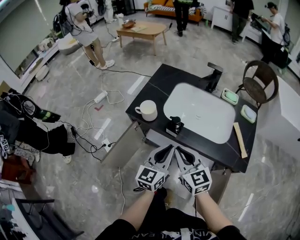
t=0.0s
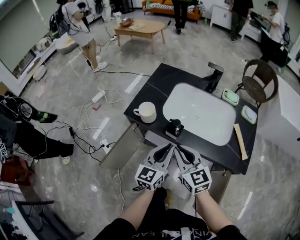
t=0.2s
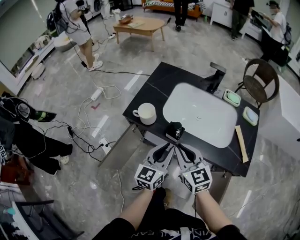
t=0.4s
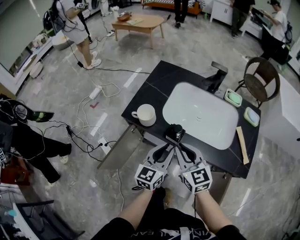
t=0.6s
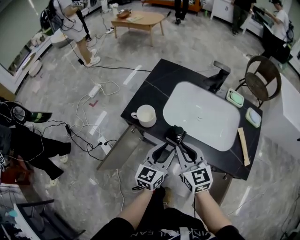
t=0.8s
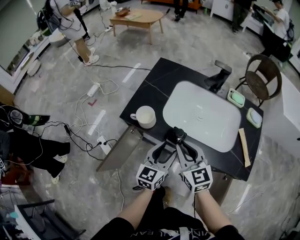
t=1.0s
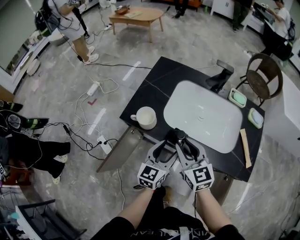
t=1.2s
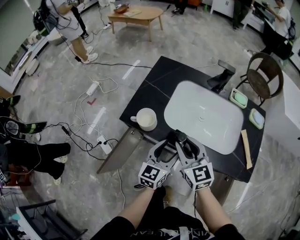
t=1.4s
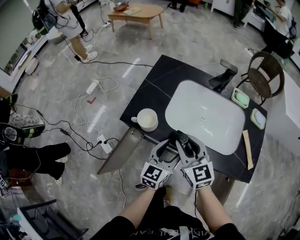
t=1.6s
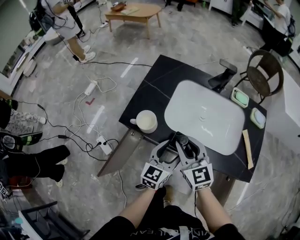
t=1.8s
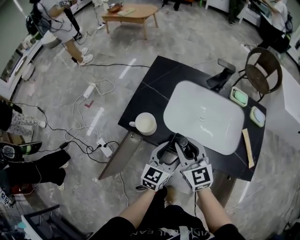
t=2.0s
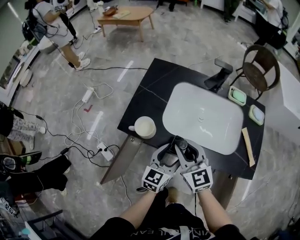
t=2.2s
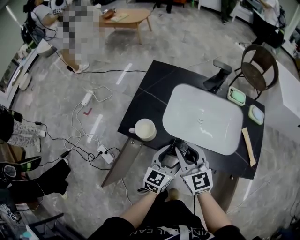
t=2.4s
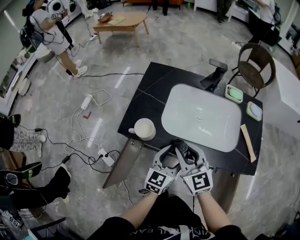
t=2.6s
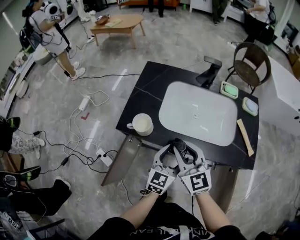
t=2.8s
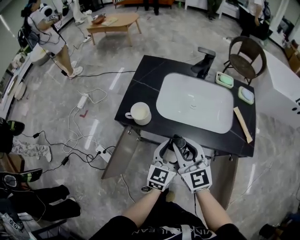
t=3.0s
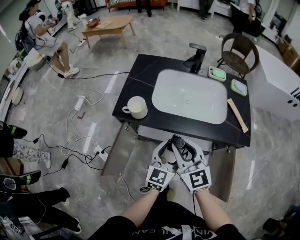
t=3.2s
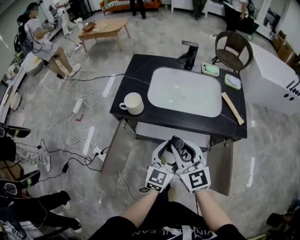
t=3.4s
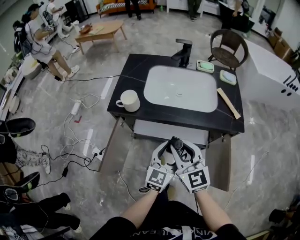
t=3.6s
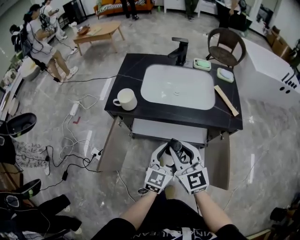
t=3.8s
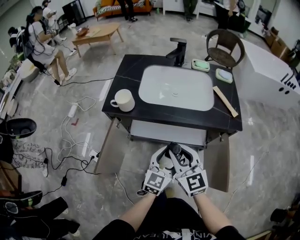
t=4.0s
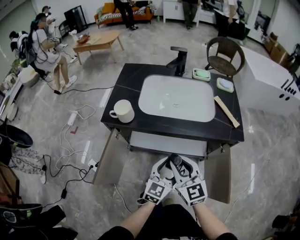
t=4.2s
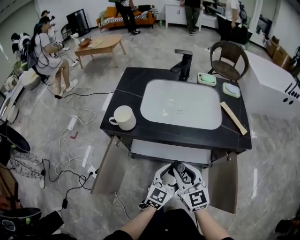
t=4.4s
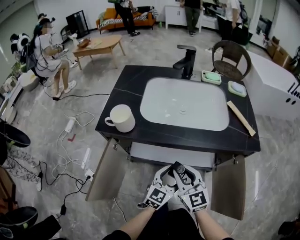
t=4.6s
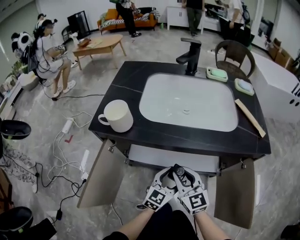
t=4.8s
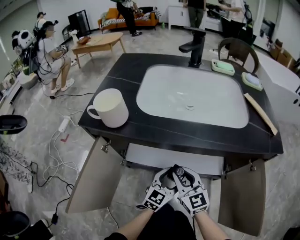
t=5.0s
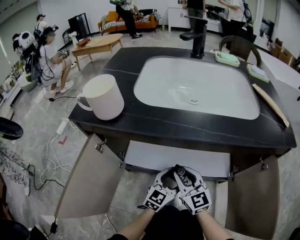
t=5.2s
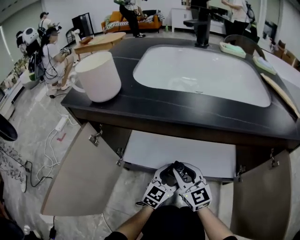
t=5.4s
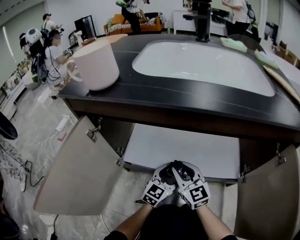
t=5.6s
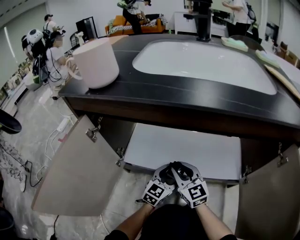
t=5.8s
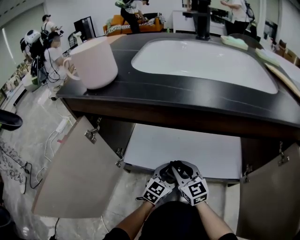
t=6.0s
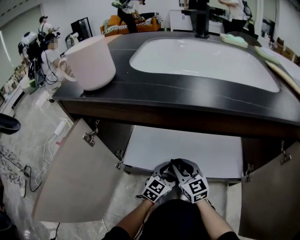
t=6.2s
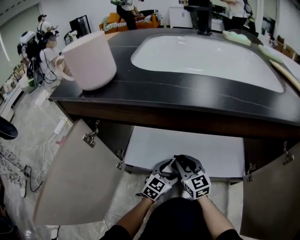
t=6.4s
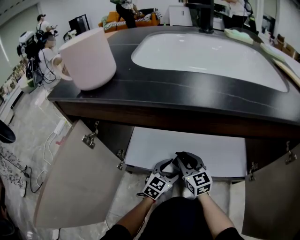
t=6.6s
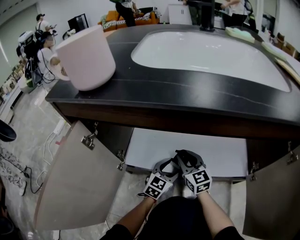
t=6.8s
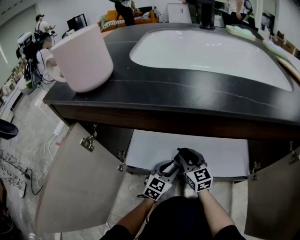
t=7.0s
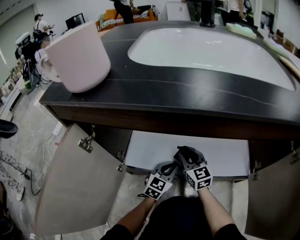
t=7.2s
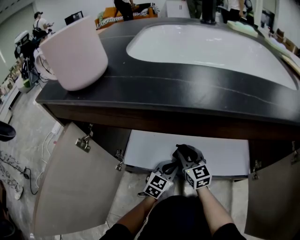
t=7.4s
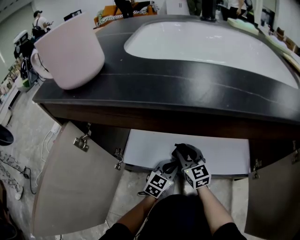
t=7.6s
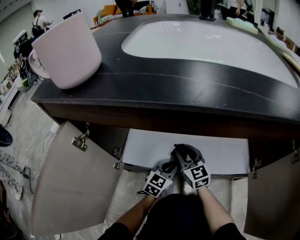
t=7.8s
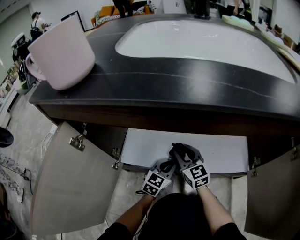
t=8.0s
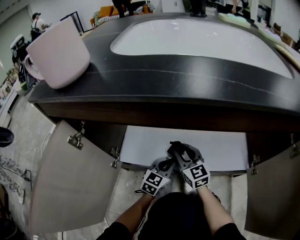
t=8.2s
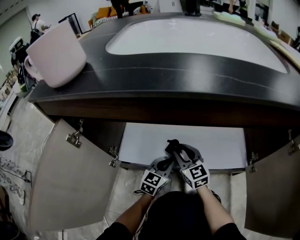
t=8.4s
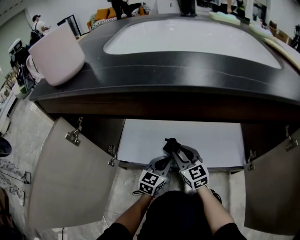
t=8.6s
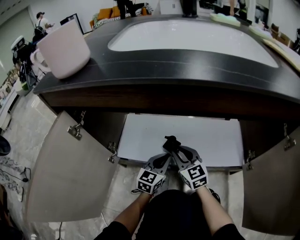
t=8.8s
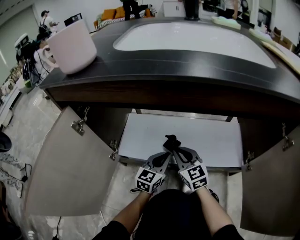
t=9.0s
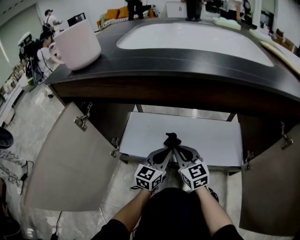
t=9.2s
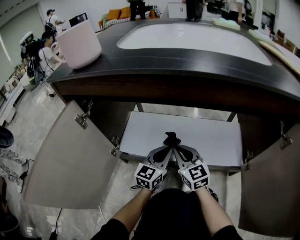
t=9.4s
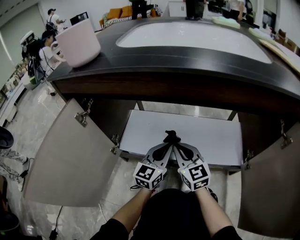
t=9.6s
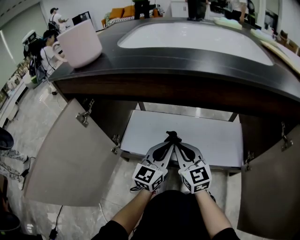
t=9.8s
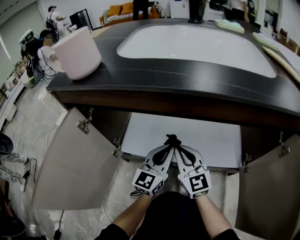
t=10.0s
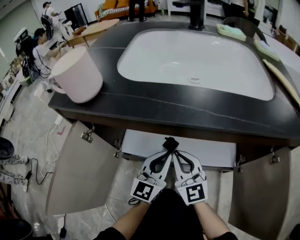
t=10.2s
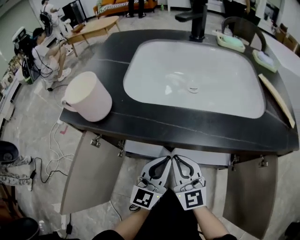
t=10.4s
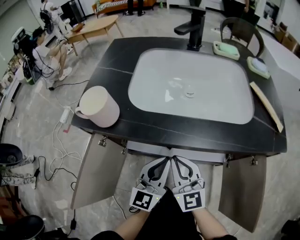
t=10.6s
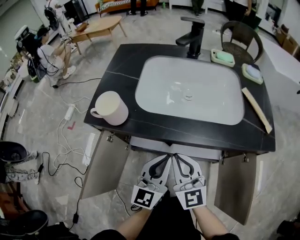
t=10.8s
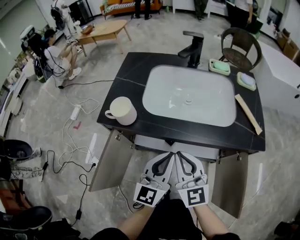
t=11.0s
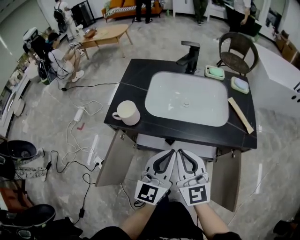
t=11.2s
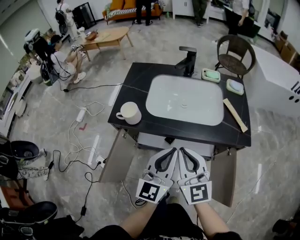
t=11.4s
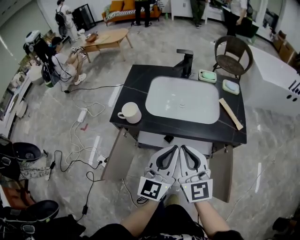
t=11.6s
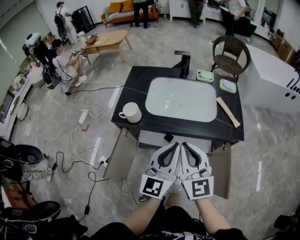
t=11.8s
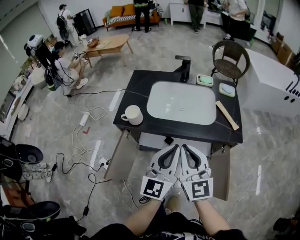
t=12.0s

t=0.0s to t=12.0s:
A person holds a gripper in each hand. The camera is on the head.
t=0.0s to t=1.6s: The left gripper shifts roughly 10 cm forward and downward, and opens up. The right gripper is displaced forward by roughly 15 cm.
t=1.6s to t=3.0s: Both grippers move backward, approximately 5 cm.
t=3.0s to t=4.4s: The two grippers go approximately 15 cm downward, backward and to the right.
t=4.4s to t=6.0s: Both grippers move downward, approximately 40 cm.
t=6.0s to t=7.6s: The left gripper moves approximately 5 cm, and closes its fingers. The right gripper shifts some 10 cm forward.
t=7.6s to t=9.0s: The right gripper moves backward, approximately 5 cm.
t=9.0s to t=10.4s: Both grippers move upward, about 25 cm.
t=10.4s to t=12.0s: Both grippers travel together upward, about 40 cm.

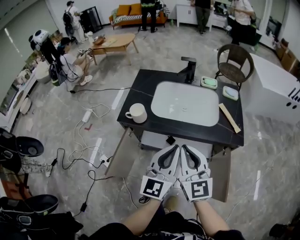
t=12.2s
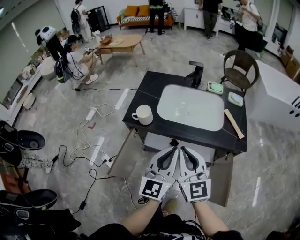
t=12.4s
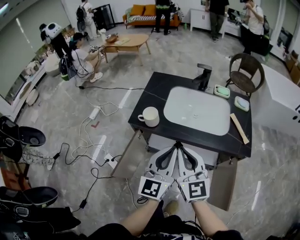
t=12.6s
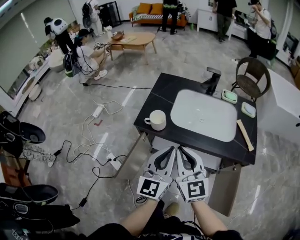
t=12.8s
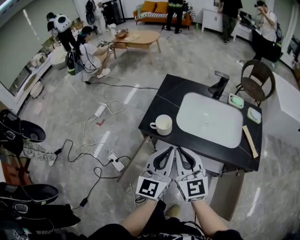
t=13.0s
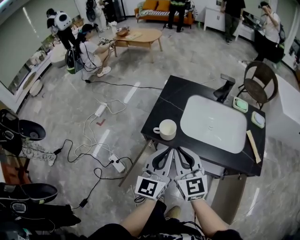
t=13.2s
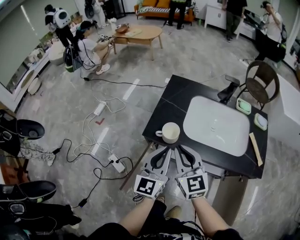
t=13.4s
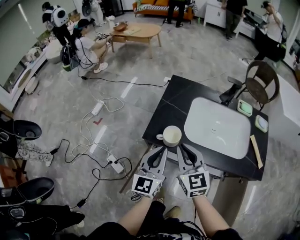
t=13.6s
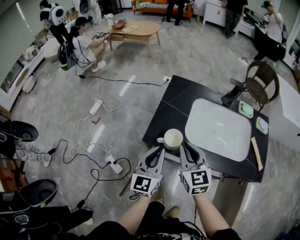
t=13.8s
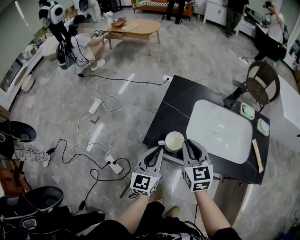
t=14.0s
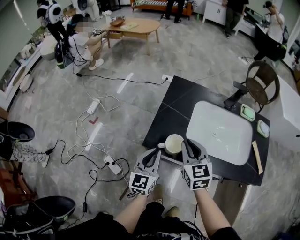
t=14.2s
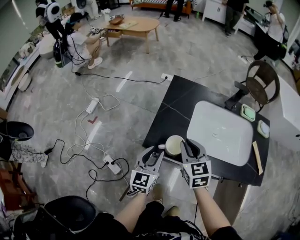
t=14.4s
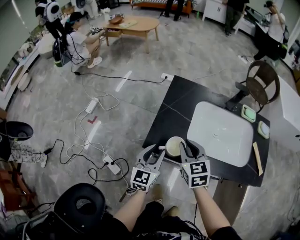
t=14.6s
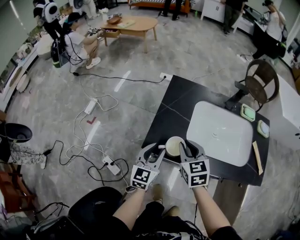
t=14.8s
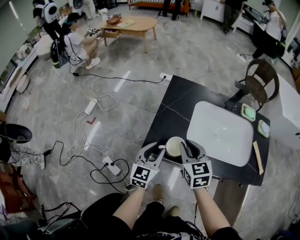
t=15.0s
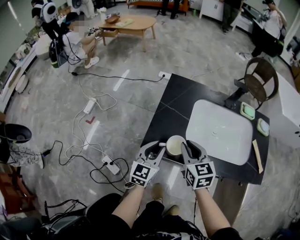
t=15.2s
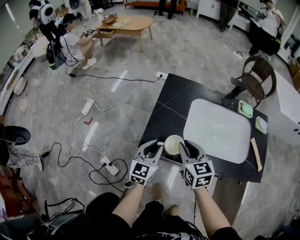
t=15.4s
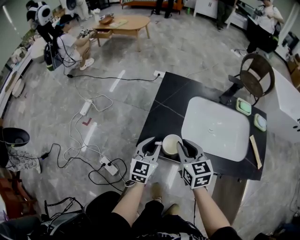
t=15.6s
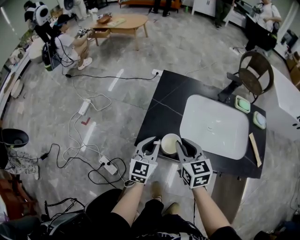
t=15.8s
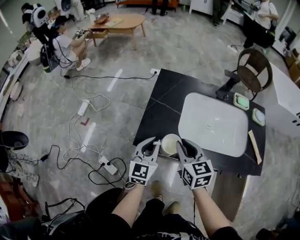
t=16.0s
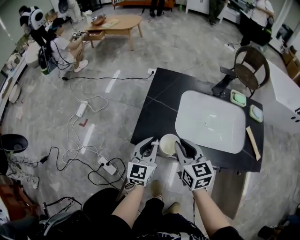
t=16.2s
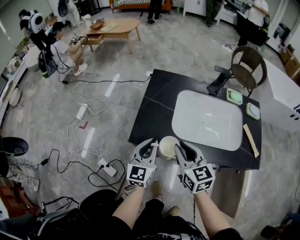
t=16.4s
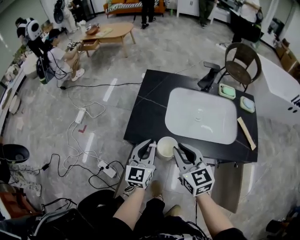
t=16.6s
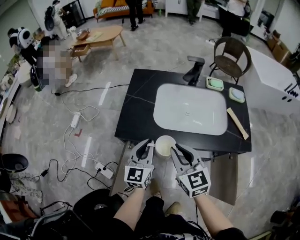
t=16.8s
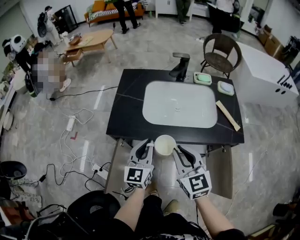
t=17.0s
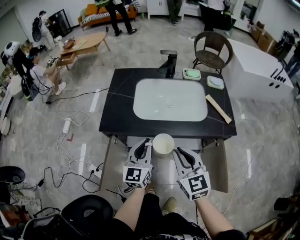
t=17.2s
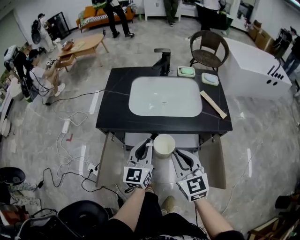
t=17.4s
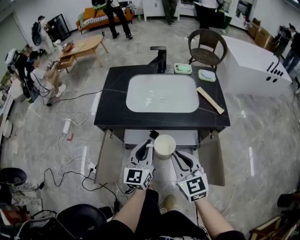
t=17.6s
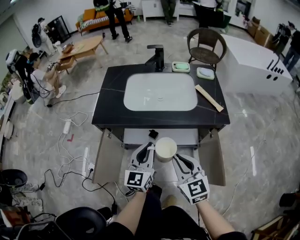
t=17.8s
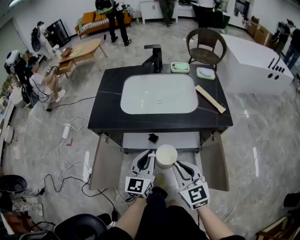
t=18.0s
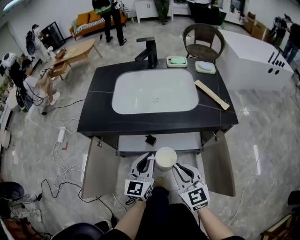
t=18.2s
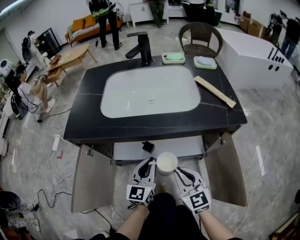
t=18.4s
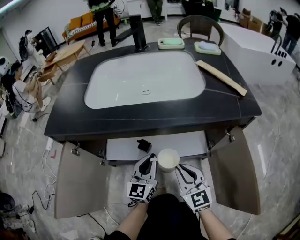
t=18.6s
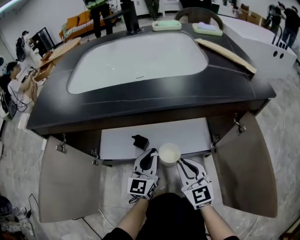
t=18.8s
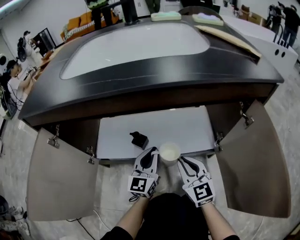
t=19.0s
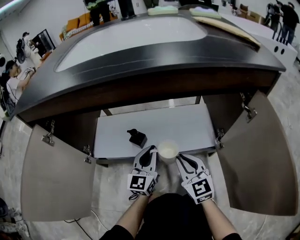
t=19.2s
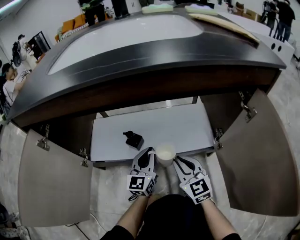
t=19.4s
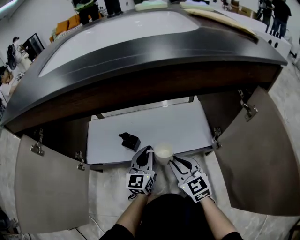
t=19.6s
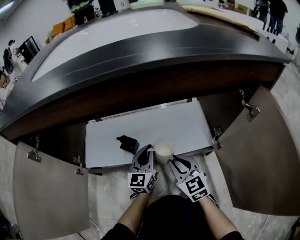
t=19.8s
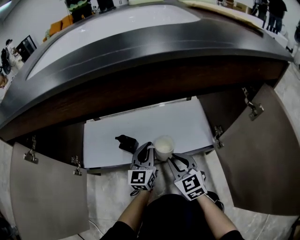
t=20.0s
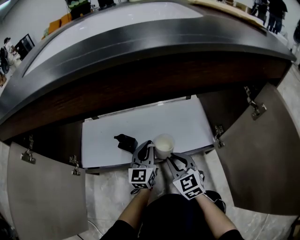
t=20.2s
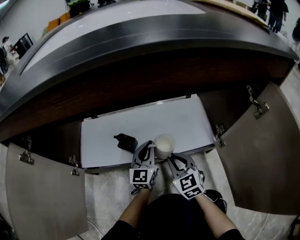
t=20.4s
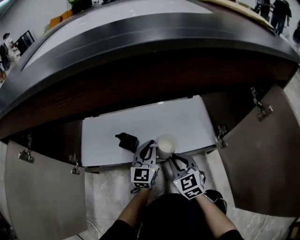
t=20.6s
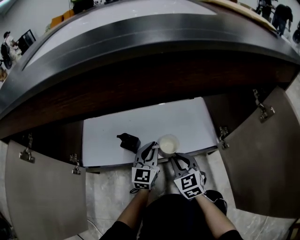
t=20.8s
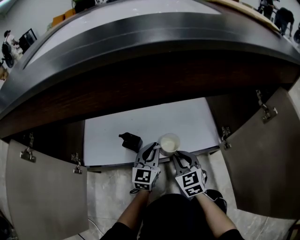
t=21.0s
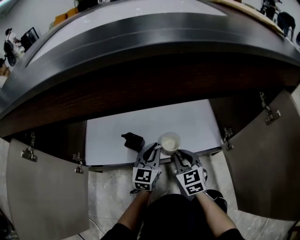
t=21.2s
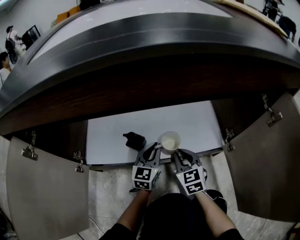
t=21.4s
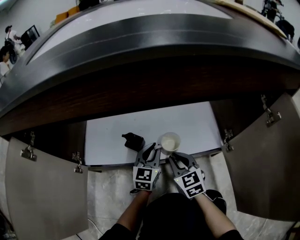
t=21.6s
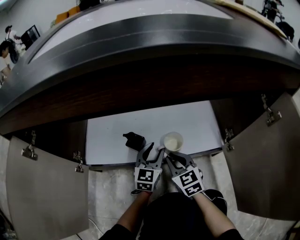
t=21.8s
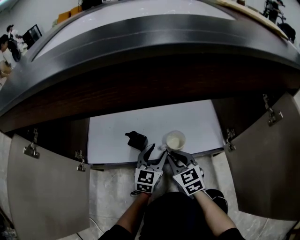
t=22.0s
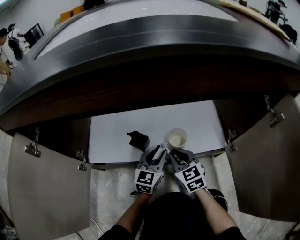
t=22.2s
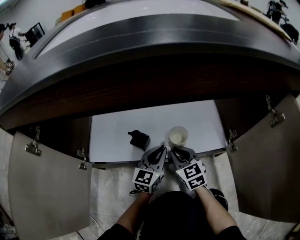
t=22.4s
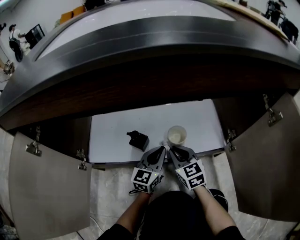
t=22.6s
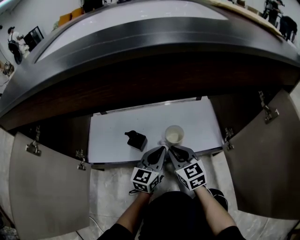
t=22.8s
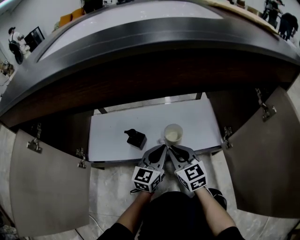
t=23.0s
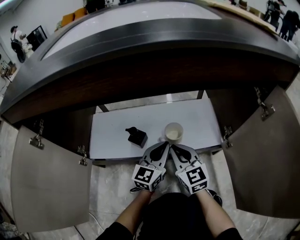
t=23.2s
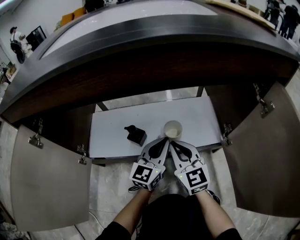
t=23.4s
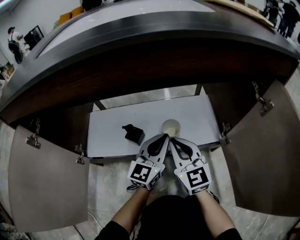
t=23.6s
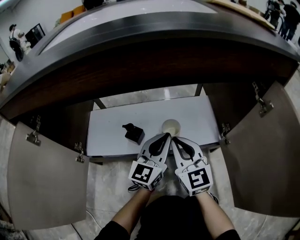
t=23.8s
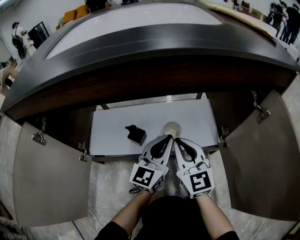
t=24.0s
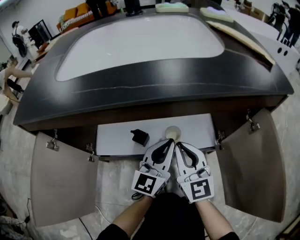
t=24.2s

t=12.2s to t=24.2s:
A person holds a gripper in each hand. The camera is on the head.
t=12.2s to t=13.8s: The left gripper moves to the left, forward and downward, roughly 30 cm; the right gripper goes approximately 25 cm forward and to the left, and turns by about 20 degrees.
t=13.8s to t=15.2s: The right gripper shifts roughly 10 cm forward and downward. The left gripper goes roughly 10 cm downward and forward.
t=15.2s to t=16.6s: The right gripper moves backward, about 10 cm. Meanwhile the left gripper heads backward, covering some 5 cm.
t=16.6s to t=18.2s: Both grippers move to the right, backward and downward, roughly 30 cm.
t=18.2s to t=19.8s: The grippers both shift downward by roughly 40 cm.
t=19.8s to t=21.2s: The left gripper moves roughly 5 cm, while the right gripper travels downward by some 5 cm.
t=21.2s to t=22.6s: The left gripper opens and closes again.
t=22.6s to t=24.2s: The grippers both shift upward by about 25 cm. The right gripper turns by about 30 degrees.
